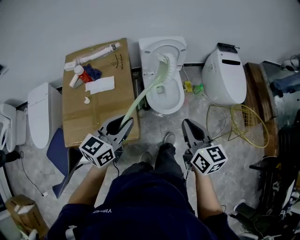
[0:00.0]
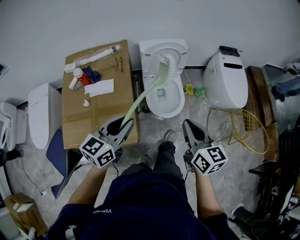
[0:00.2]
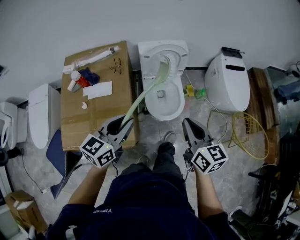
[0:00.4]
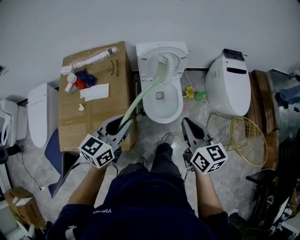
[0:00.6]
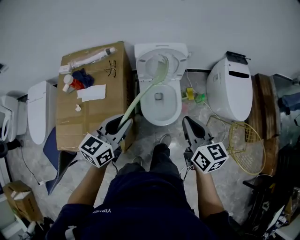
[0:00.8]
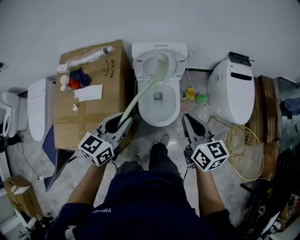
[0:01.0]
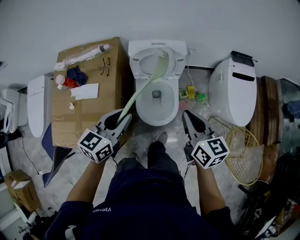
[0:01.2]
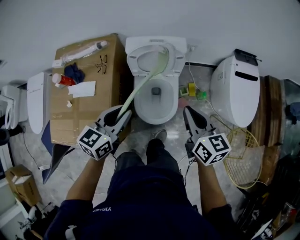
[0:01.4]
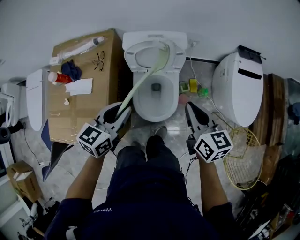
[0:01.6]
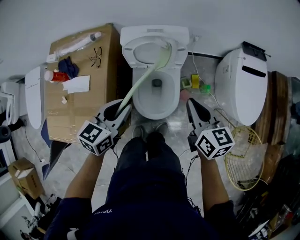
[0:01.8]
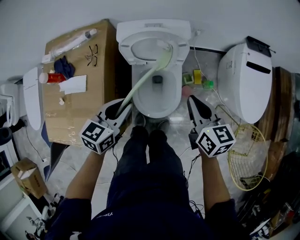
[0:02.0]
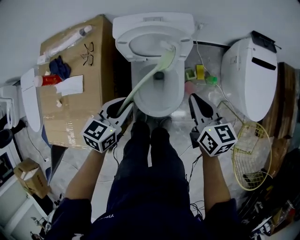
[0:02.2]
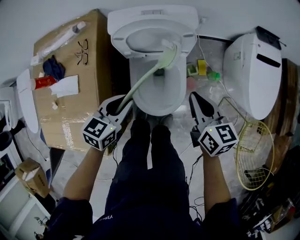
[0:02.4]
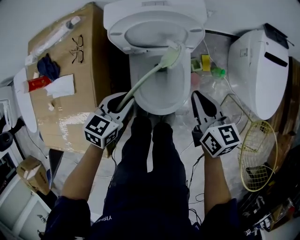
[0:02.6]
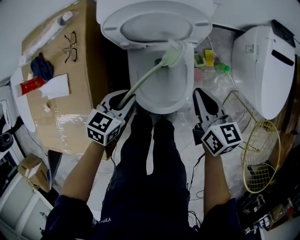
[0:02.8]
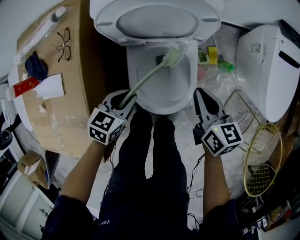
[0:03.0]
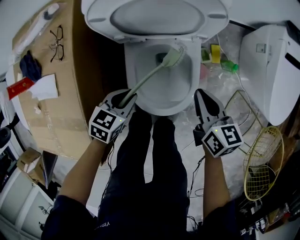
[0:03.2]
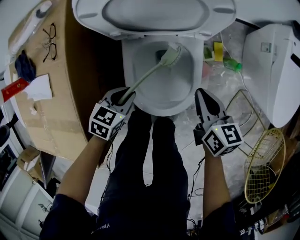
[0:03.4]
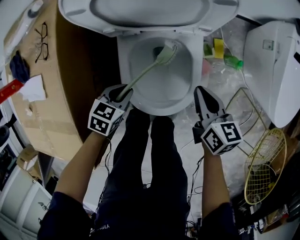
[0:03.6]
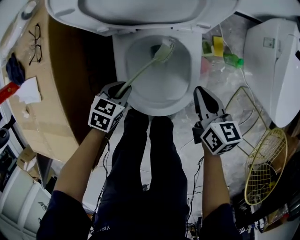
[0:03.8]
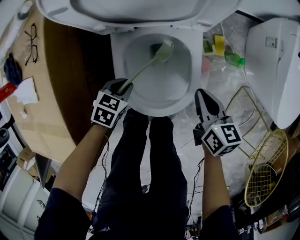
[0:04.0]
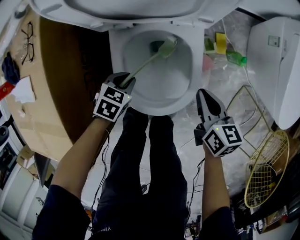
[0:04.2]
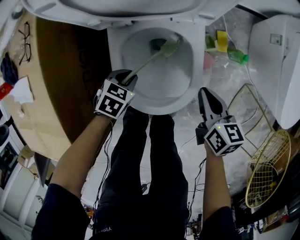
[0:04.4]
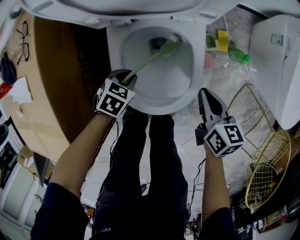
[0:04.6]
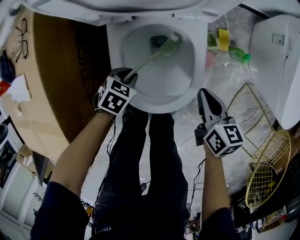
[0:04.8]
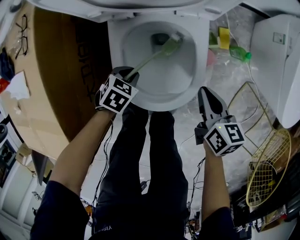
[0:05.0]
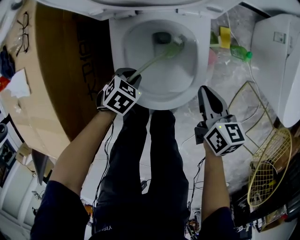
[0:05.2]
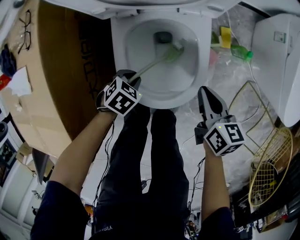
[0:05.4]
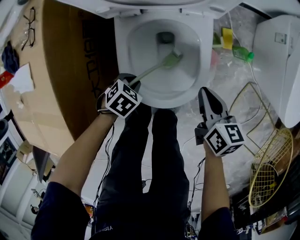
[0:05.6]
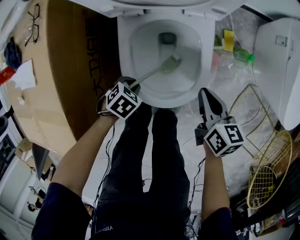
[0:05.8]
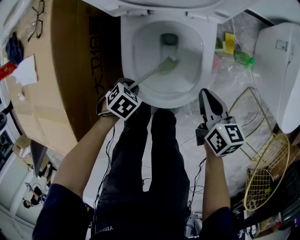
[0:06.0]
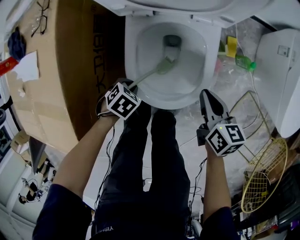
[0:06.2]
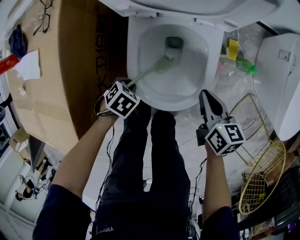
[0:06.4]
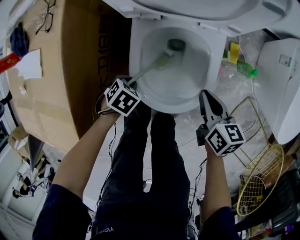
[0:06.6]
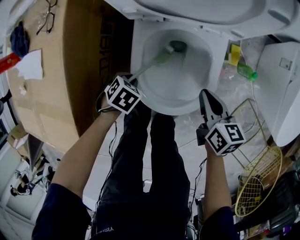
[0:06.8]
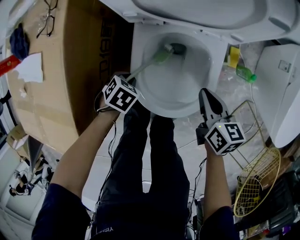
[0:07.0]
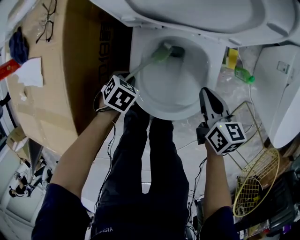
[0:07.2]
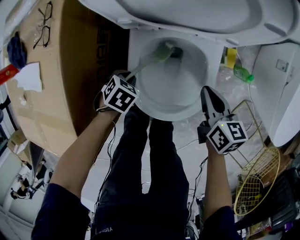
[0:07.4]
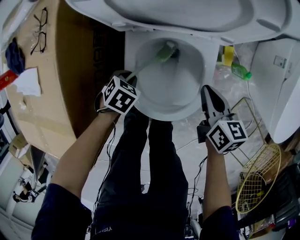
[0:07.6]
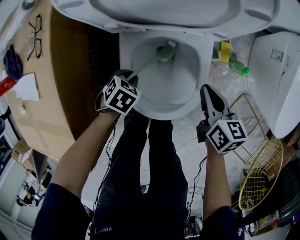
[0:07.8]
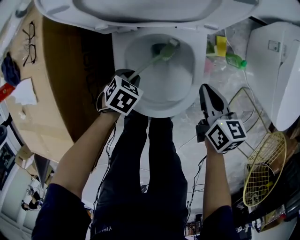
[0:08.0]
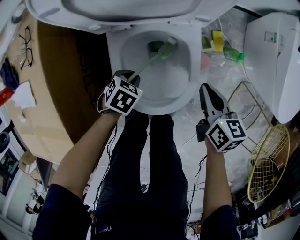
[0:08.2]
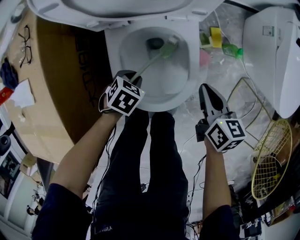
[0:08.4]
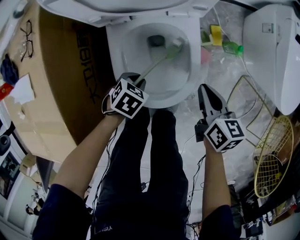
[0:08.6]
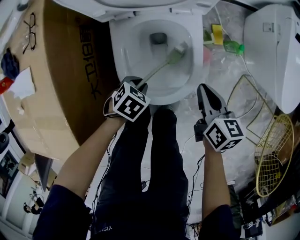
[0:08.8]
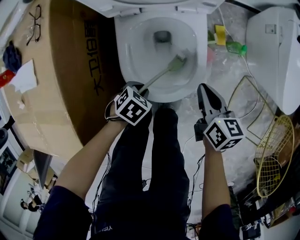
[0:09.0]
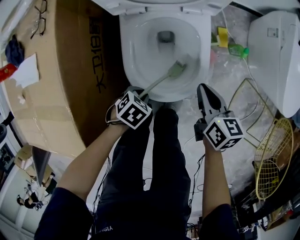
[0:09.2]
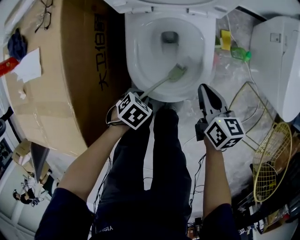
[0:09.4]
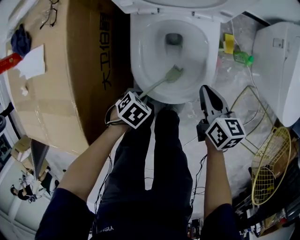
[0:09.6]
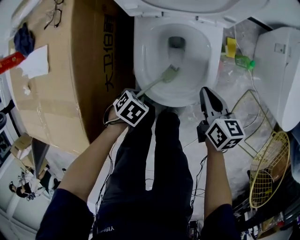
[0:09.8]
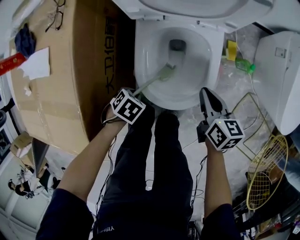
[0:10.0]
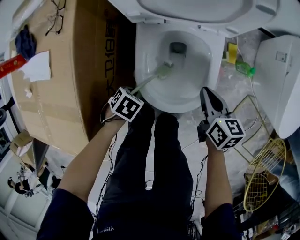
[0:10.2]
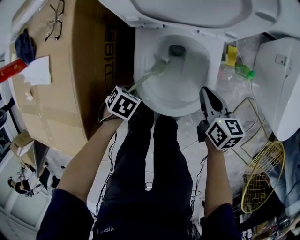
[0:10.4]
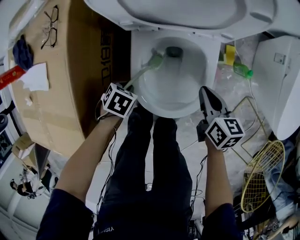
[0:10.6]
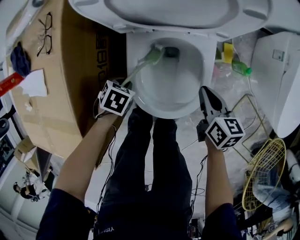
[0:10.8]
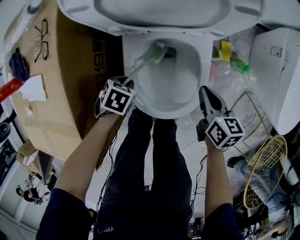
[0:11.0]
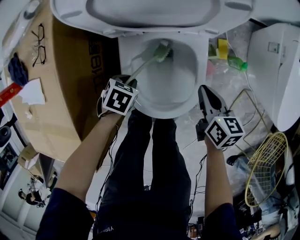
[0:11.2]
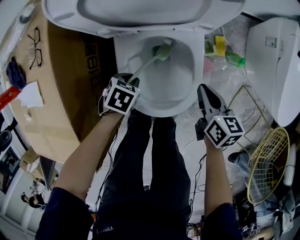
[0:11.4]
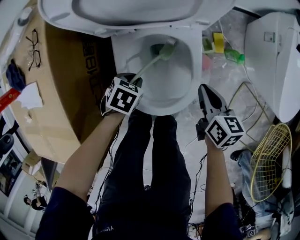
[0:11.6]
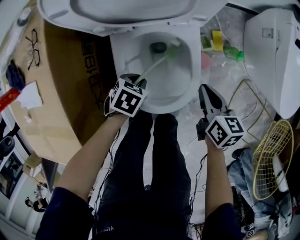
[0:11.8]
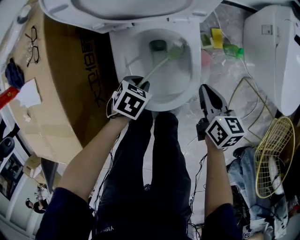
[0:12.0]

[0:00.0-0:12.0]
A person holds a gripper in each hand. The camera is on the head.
0:00.0 to 0:01.6: Both grippers travel together forward and to the right, roughly 30 cm.
0:01.6 to 0:03.0: Both grippers travel together downward, approximately 30 cm. The left gripper turns by about 30 degrees.
0:03.0 to 0:04.4: Both grippers move downward, approximately 20 cm. The left gripper rotates approximately 20 degrees.
0:04.4 to 0:06.0: The left gripper shifts by some 10 cm.
0:06.0 to 0:07.6: The right gripper moves some 10 cm. The left gripper ends up about 10 cm from where it was.
0:07.6 to 0:09.0: The left gripper shifts by roughly 15 cm, while the right gripper ends up approximately 10 cm from where it was.
0:09.0 to 0:10.4: The right gripper shifts by approximately 10 cm; the left gripper ends up some 10 cm from where it was.
0:10.4 to 0:12.0: The right gripper changes place by some 5 cm. The left gripper moves roughly 15 cm.

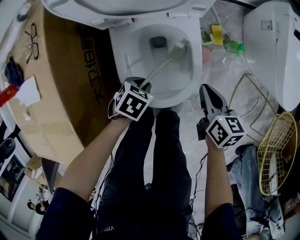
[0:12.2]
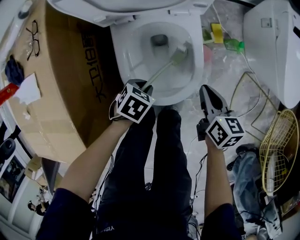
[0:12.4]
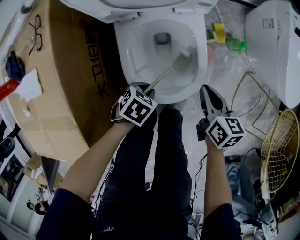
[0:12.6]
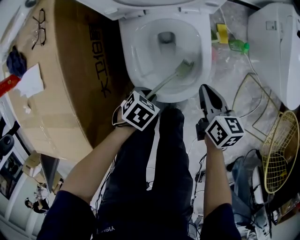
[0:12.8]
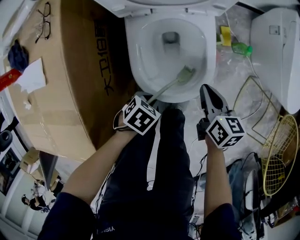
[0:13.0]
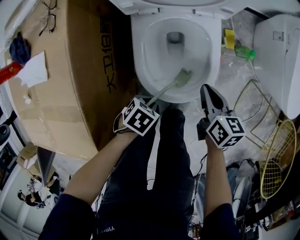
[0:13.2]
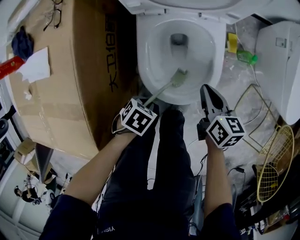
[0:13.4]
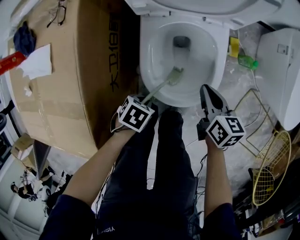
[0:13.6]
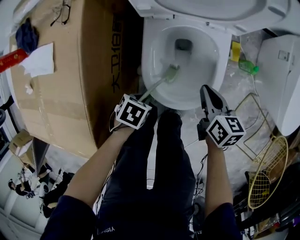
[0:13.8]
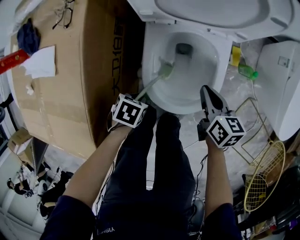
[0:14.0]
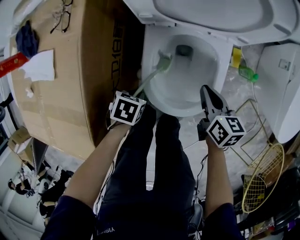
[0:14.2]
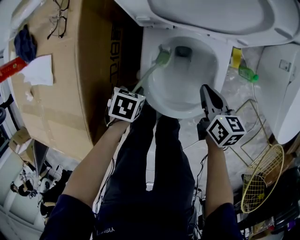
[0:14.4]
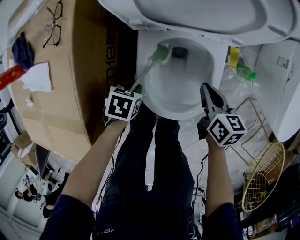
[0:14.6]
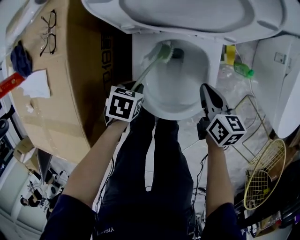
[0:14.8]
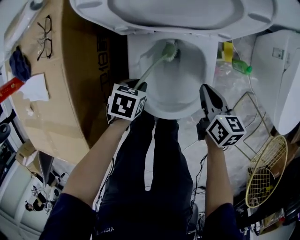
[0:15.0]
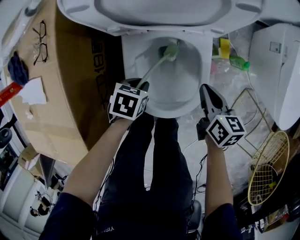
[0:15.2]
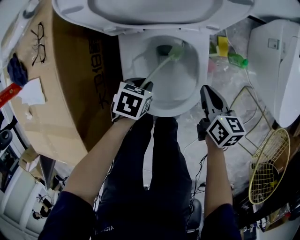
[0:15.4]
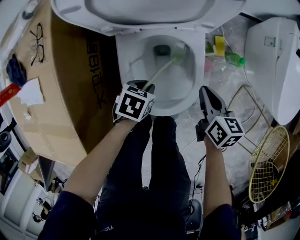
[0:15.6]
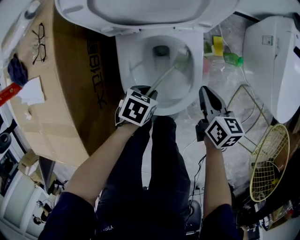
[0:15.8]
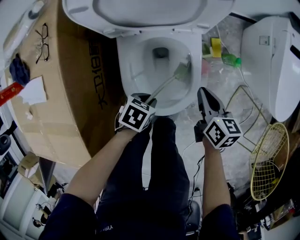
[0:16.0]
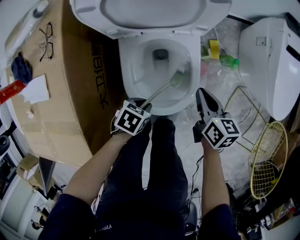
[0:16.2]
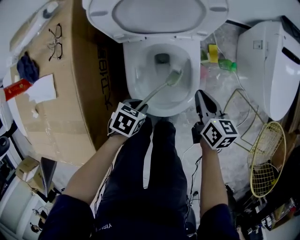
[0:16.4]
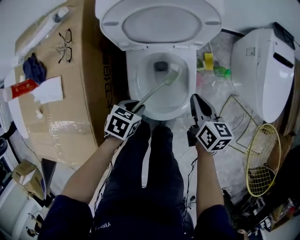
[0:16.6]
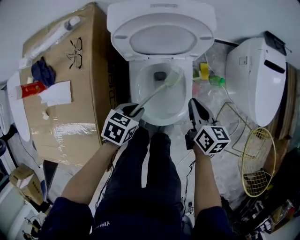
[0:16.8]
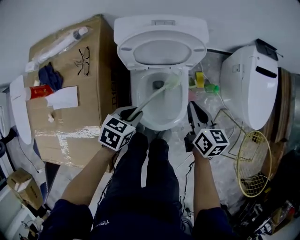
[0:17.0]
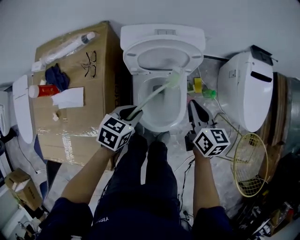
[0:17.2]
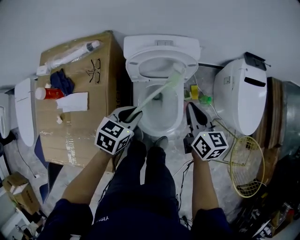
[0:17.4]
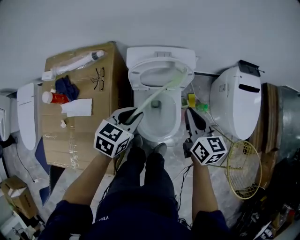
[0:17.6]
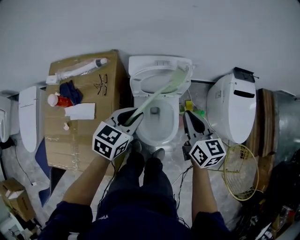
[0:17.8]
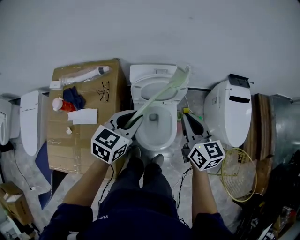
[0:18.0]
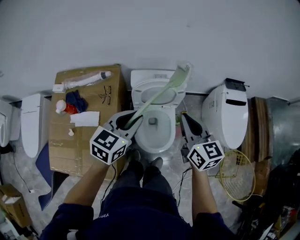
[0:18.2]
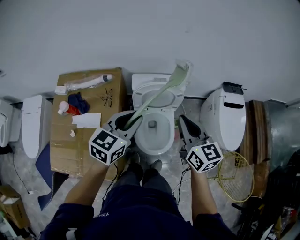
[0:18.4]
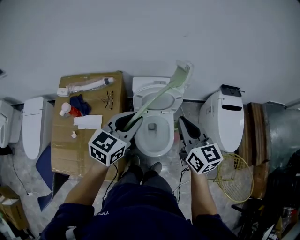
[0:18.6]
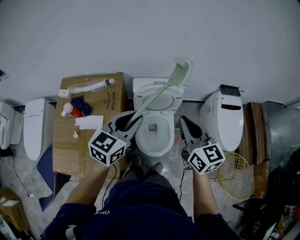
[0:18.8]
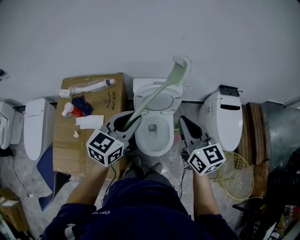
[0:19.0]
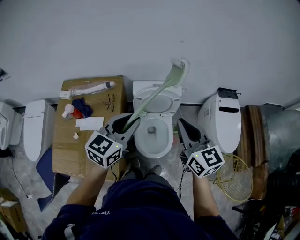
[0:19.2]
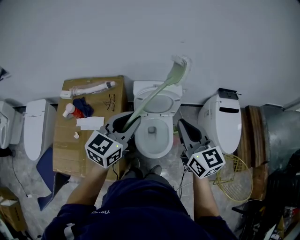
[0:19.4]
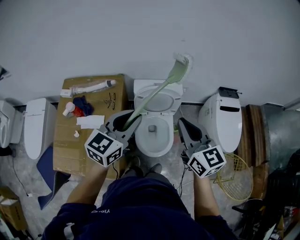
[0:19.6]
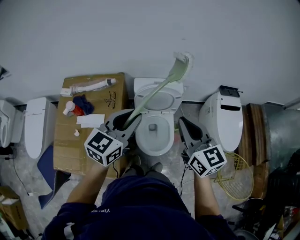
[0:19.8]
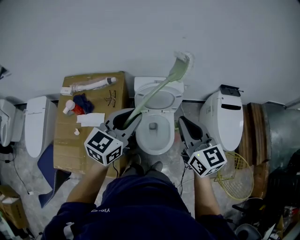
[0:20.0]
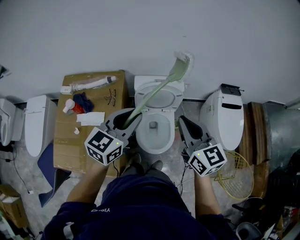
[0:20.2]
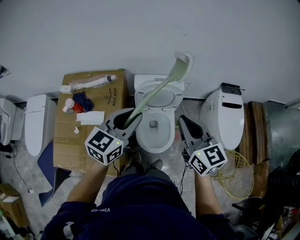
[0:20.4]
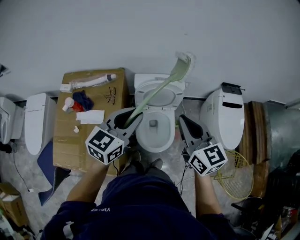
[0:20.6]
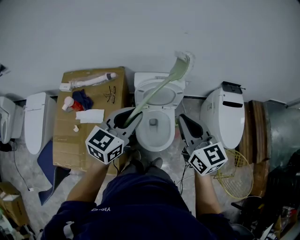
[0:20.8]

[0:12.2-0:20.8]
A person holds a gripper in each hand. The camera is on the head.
0:12.2 to 0:13.6: The right gripper moves roughly 10 cm; the left gripper shifts by about 15 cm.
0:13.6 to 0:15.0: The left gripper shifts by approximately 15 cm, while the right gripper shifts by approximately 10 cm.
0:15.0 to 0:16.6: The two grippers go approximately 10 cm upward.
0:16.6 to 0:18.0: The grippers both shift upward by roughly 40 cm. The left gripper points its fingers roughly 30 degrees further upward; the right gripper rotates approximately 30 degrees.
0:18.0 to 0:19.4: The left gripper moves upward, roughly 15 cm; the right gripper shifts roughly 15 cm upward and backward.
0:19.4 to 0:20.8: There are only small adjustments of the grippers.

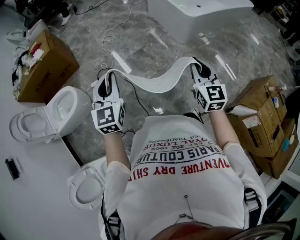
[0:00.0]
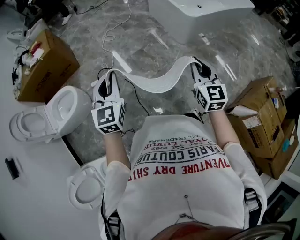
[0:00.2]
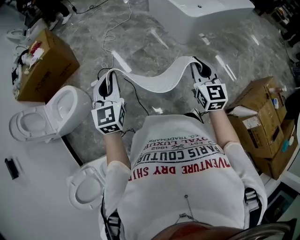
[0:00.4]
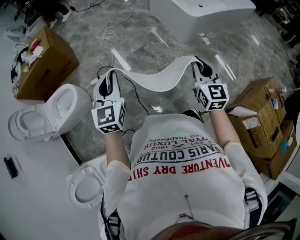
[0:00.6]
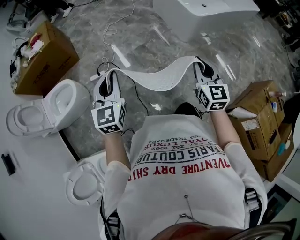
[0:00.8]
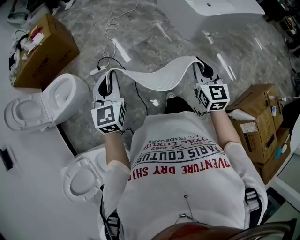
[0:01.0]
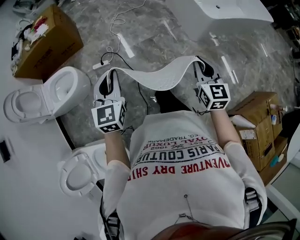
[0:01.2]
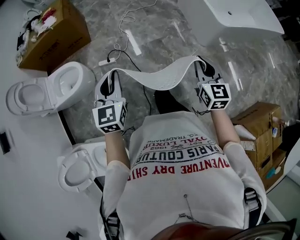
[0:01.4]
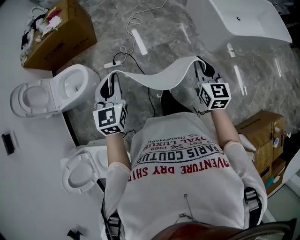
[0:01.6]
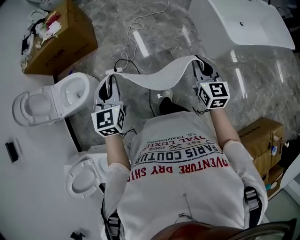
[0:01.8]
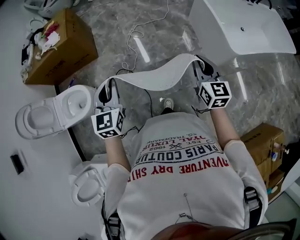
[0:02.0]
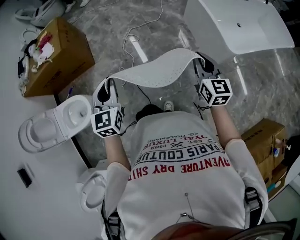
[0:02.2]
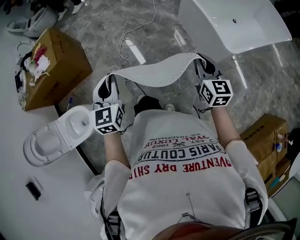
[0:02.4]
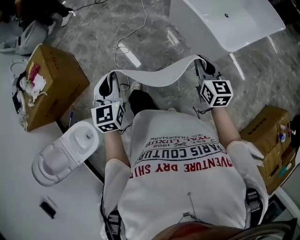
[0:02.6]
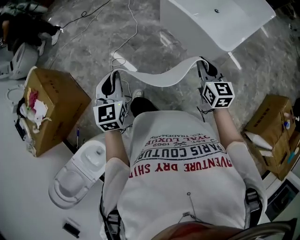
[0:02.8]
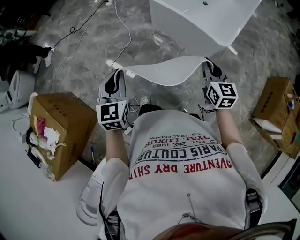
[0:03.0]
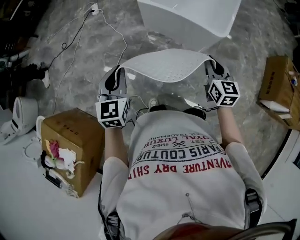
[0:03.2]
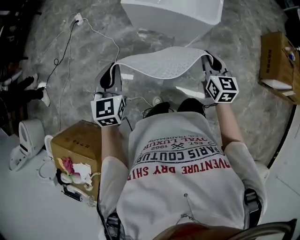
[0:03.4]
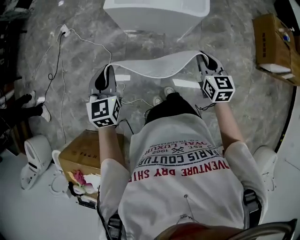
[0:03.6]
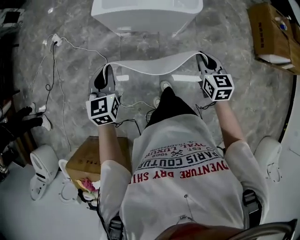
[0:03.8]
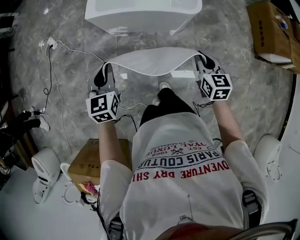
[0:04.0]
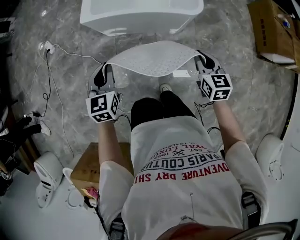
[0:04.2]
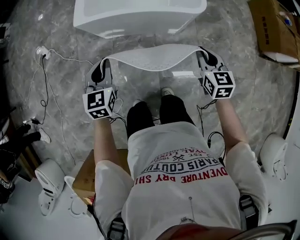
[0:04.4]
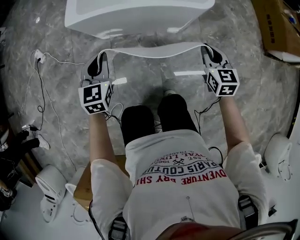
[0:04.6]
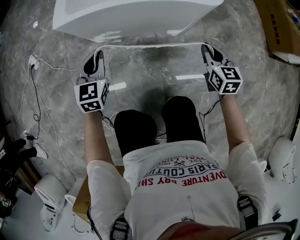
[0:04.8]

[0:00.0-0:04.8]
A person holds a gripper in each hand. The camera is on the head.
0:00.0 to 0:01.6: The right gripper heads forward and to the left, covering about 20 cm; the left gripper goes approximately 15 cm to the left and forward.
0:01.6 to 0:03.2: The two grippers travel together, about 60 cm. The left gripper changes its angle by about 50 degrees. Meanwhile the right gripper swivels roughly 50 degrees.
0:03.2 to 0:04.8: Both grippers move downward, about 40 cm. The right gripper turns by some 30 degrees, while the left gripper rotates about 30 degrees.
